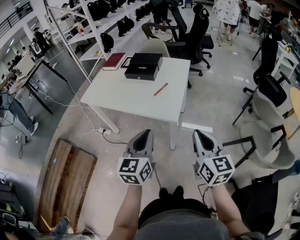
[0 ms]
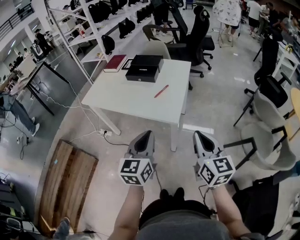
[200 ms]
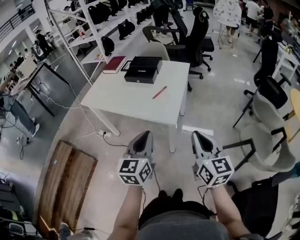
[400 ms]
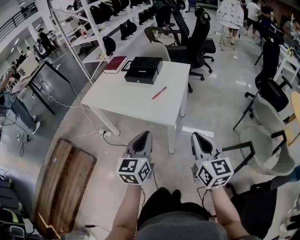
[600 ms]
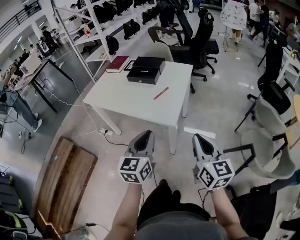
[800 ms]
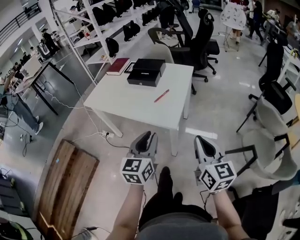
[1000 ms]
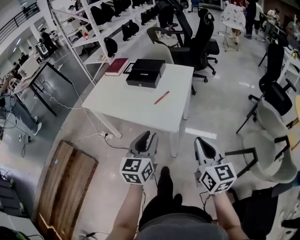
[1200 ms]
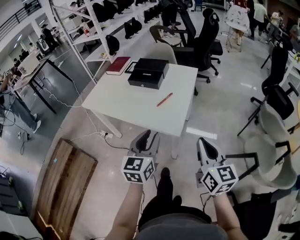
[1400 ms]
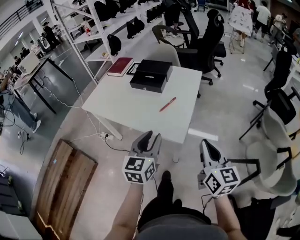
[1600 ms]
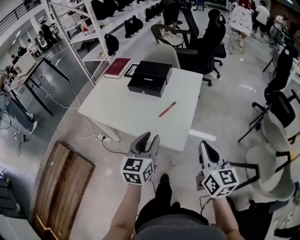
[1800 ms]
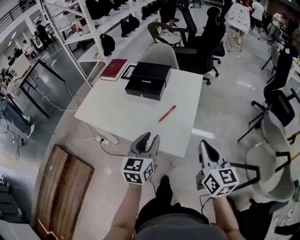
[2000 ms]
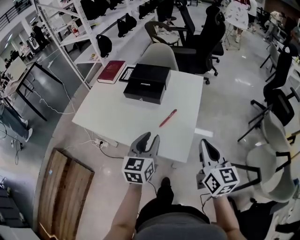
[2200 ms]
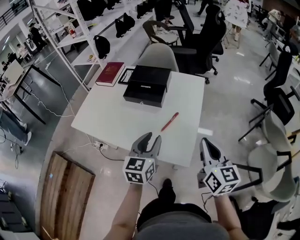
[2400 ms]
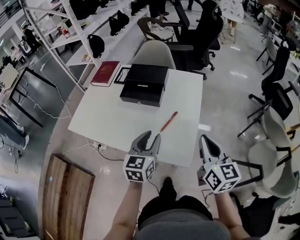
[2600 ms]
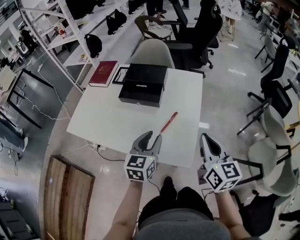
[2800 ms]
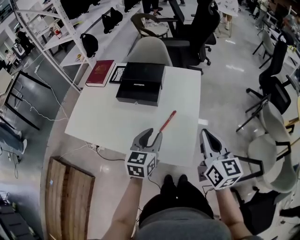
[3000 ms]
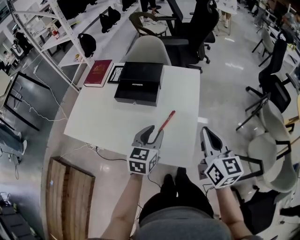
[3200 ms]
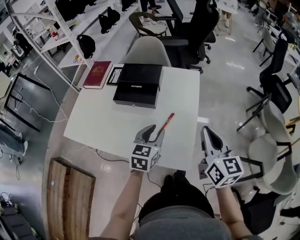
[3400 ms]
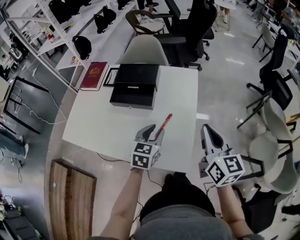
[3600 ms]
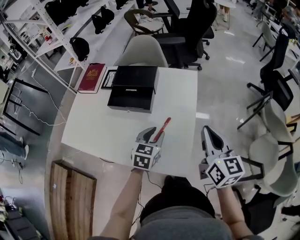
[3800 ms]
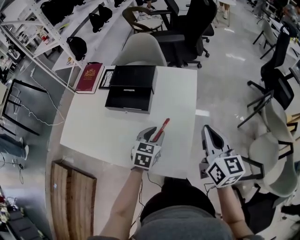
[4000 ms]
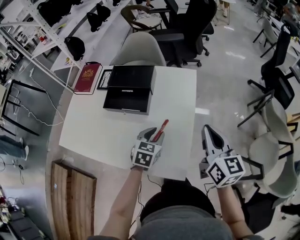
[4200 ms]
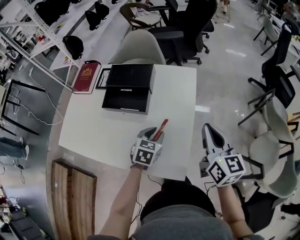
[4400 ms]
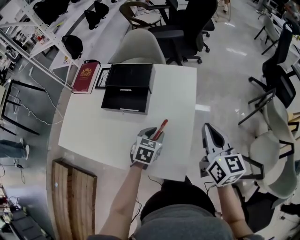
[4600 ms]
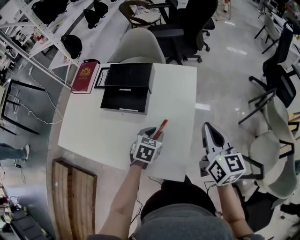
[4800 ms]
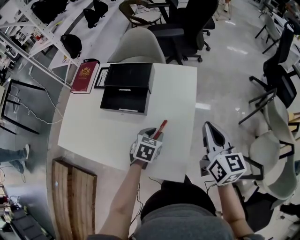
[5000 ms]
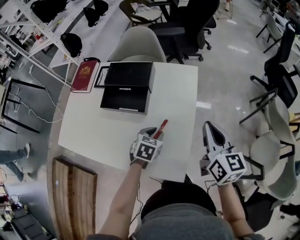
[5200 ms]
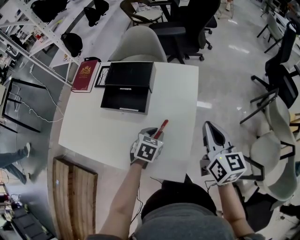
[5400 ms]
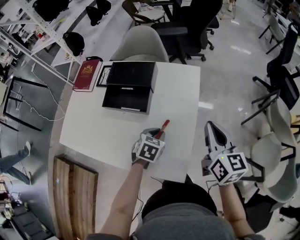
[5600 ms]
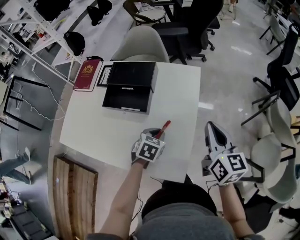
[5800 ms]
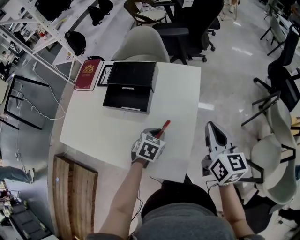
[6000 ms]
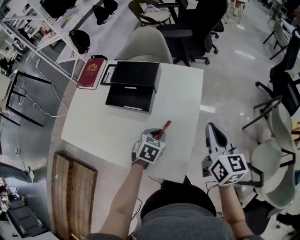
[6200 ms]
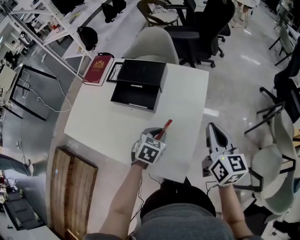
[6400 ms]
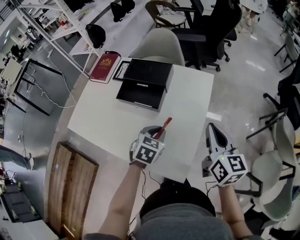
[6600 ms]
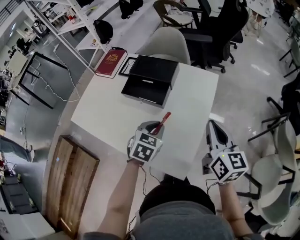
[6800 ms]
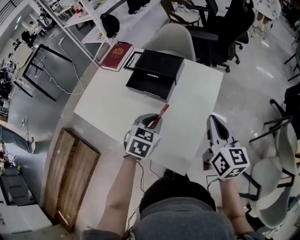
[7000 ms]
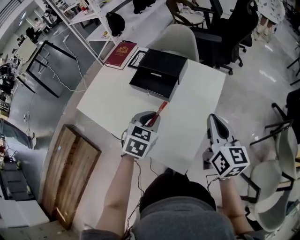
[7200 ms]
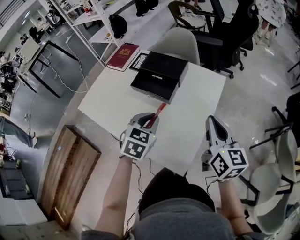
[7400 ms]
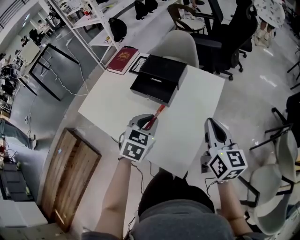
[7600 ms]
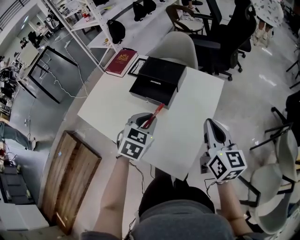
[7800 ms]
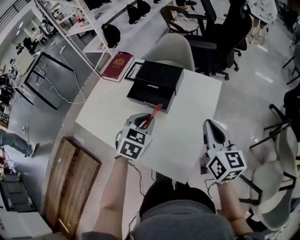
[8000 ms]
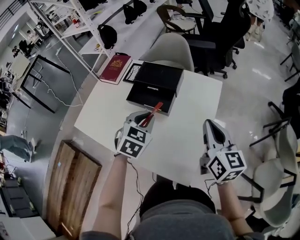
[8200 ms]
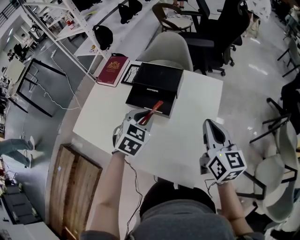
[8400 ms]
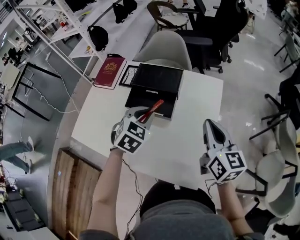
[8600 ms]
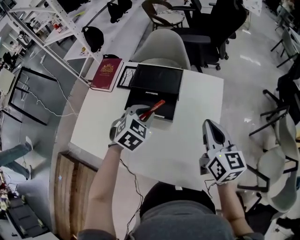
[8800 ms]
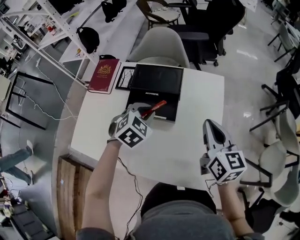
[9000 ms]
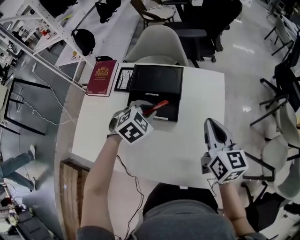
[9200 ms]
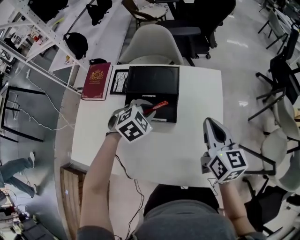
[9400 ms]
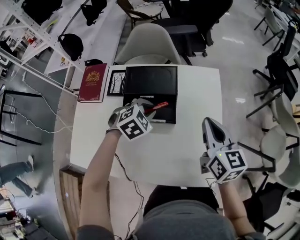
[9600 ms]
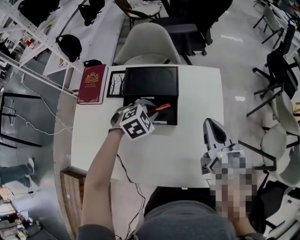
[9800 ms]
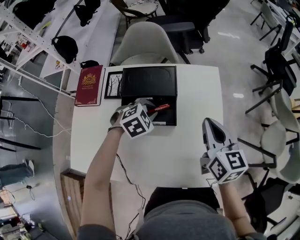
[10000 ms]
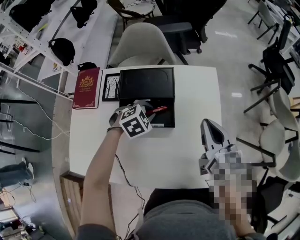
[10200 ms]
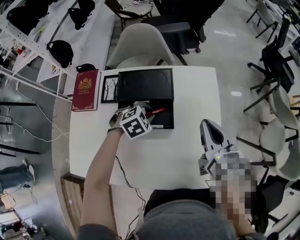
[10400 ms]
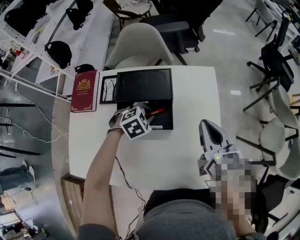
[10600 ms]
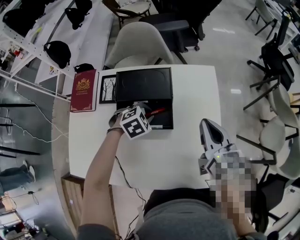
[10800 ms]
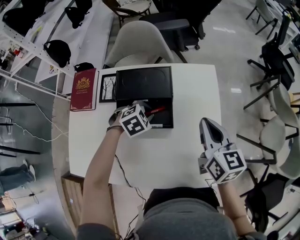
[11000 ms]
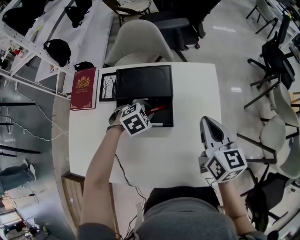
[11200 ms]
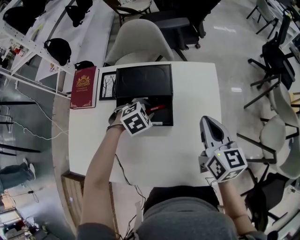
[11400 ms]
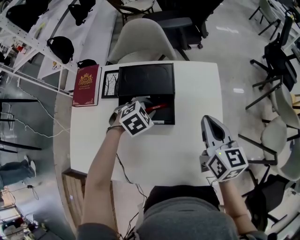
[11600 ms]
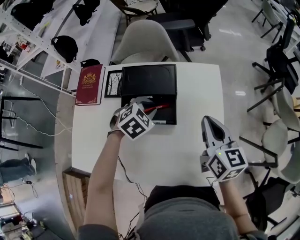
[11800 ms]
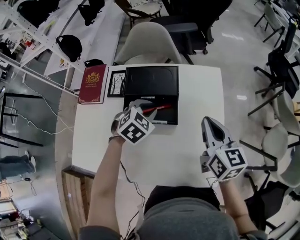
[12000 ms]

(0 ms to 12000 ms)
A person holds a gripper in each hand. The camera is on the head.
0 ms - 1600 ms: Both grippers move forward, some 10 cm. The left gripper opens.
1600 ms - 3000 ms: The grippers both shift forward by about 20 cm.
3000 ms - 4400 ms: The right gripper shifts some 10 cm forward. Meanwhile the left gripper goes about 15 cm downward and forward, and swivels roughly 30 degrees.
4400 ms - 6000 ms: The grippers move only a little.
6000 ms - 7600 ms: The right gripper moves to the left, roughly 5 cm, while the left gripper goes about 15 cm upward and to the left, and rotates roughly 20 degrees.
7600 ms - 9000 ms: The left gripper moves forward, approximately 15 cm, and rotates about 40 degrees. Meanwhile the right gripper shifts about 10 cm forward and to the left.
9000 ms - 10400 ms: The left gripper goes roughly 10 cm downward, and changes its angle by roughly 30 degrees.
10400 ms - 12000 ms: The left gripper travels upward by roughly 5 cm, and swivels some 20 degrees.

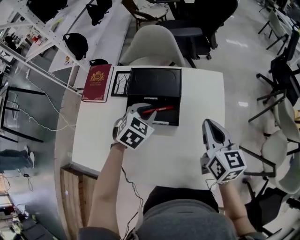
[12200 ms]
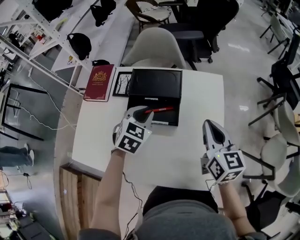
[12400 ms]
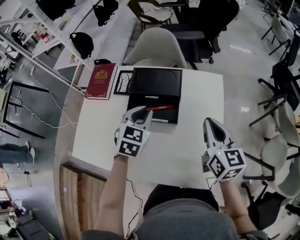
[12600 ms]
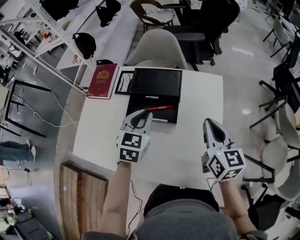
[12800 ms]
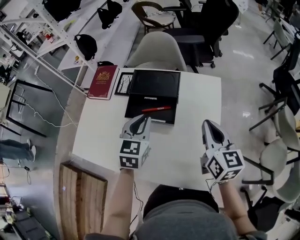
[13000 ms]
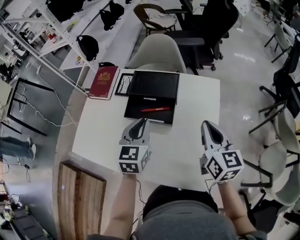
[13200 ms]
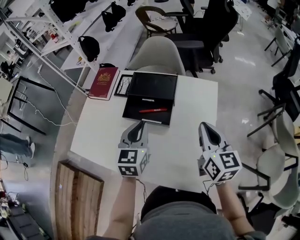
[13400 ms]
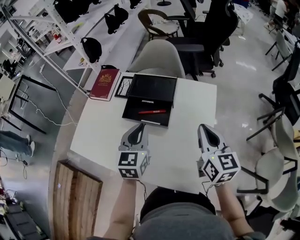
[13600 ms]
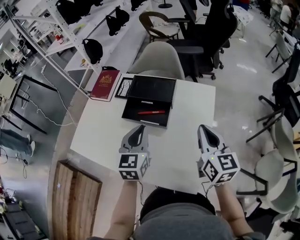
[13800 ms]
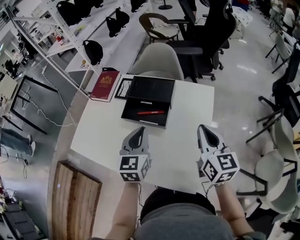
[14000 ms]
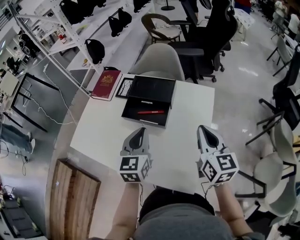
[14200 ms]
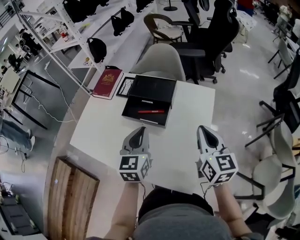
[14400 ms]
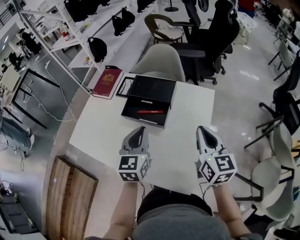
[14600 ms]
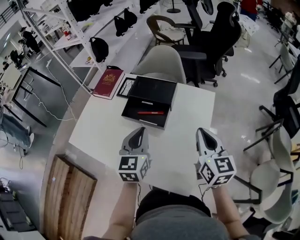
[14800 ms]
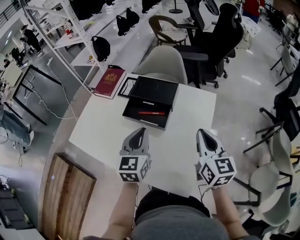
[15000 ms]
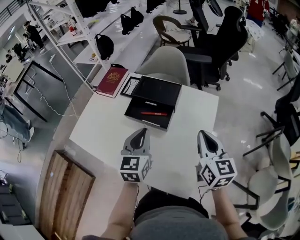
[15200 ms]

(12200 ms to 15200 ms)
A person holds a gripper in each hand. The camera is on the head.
12200 ms - 13800 ms: The right gripper shifts by approximately 5 cm, while the left gripper shifts about 15 cm backward and upward, and turns by roughly 50 degrees.
13800 ms - 15200 ms: The grippers make only small movements.

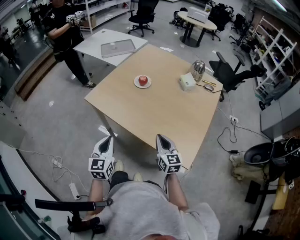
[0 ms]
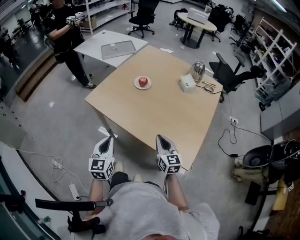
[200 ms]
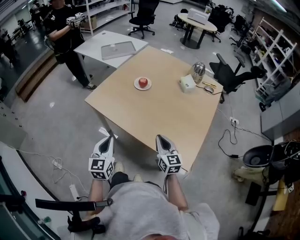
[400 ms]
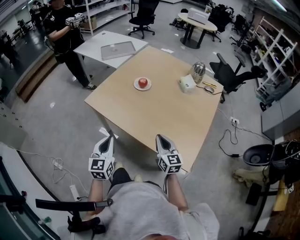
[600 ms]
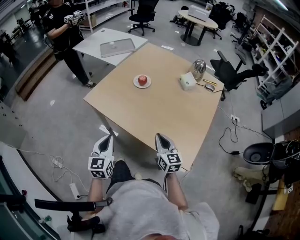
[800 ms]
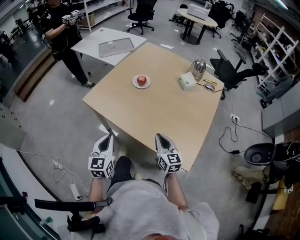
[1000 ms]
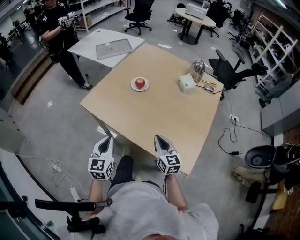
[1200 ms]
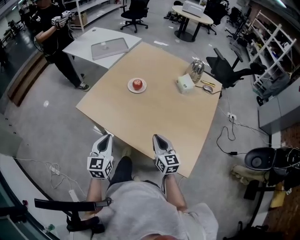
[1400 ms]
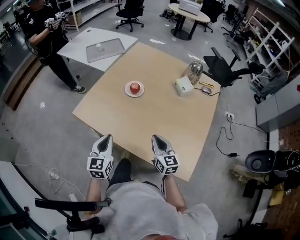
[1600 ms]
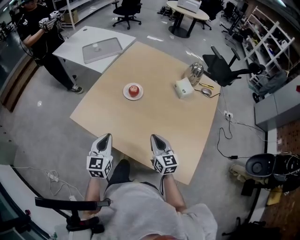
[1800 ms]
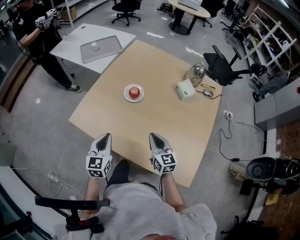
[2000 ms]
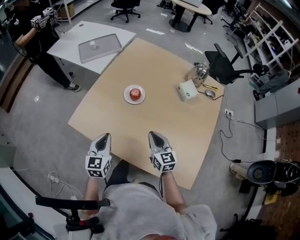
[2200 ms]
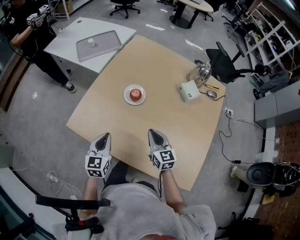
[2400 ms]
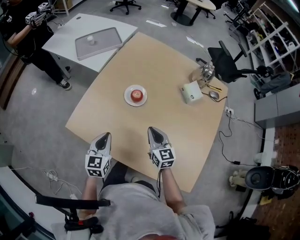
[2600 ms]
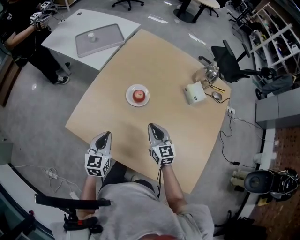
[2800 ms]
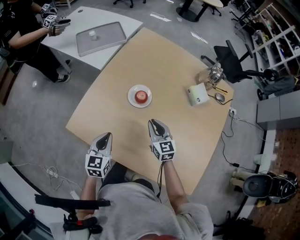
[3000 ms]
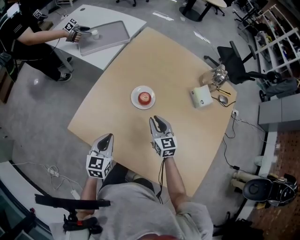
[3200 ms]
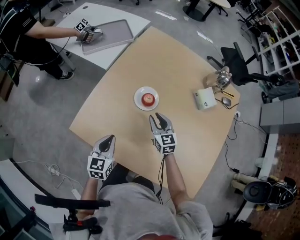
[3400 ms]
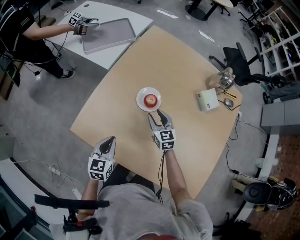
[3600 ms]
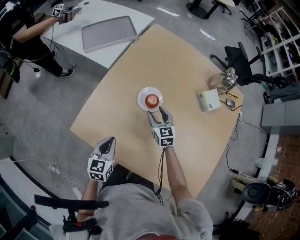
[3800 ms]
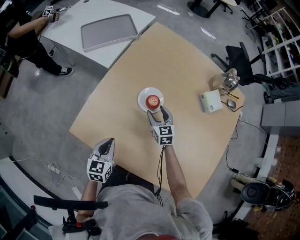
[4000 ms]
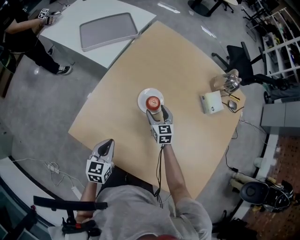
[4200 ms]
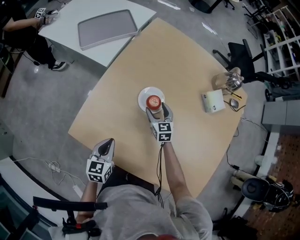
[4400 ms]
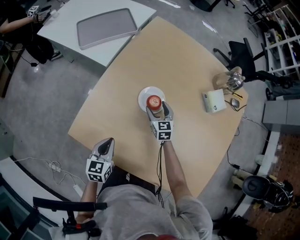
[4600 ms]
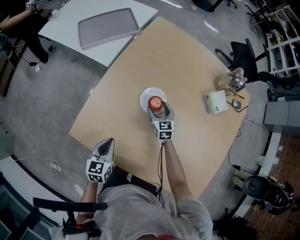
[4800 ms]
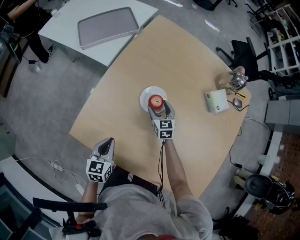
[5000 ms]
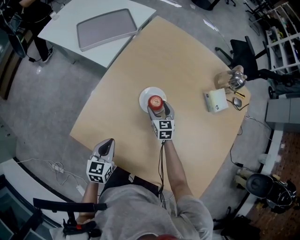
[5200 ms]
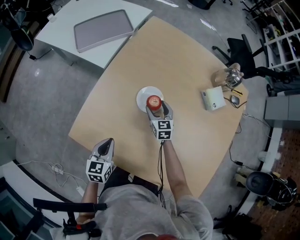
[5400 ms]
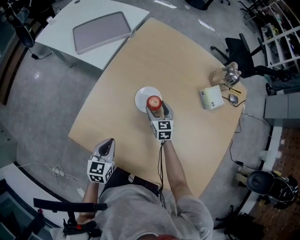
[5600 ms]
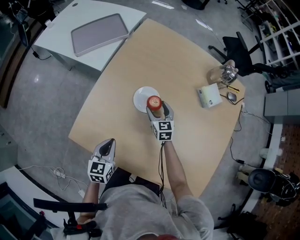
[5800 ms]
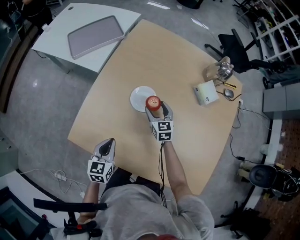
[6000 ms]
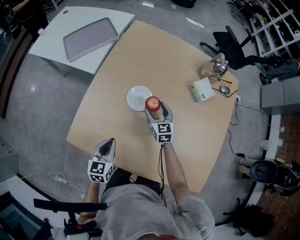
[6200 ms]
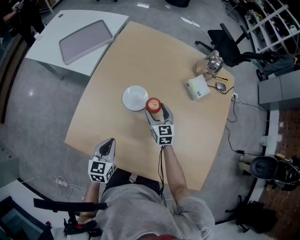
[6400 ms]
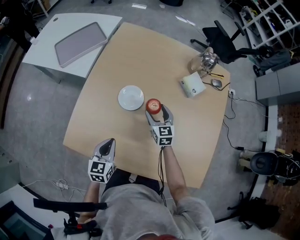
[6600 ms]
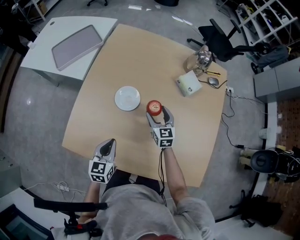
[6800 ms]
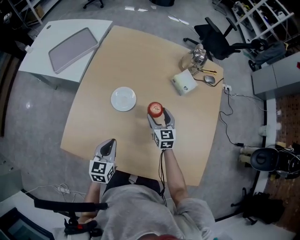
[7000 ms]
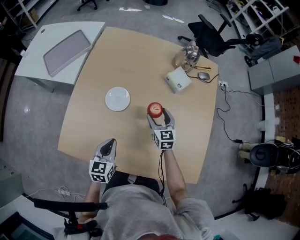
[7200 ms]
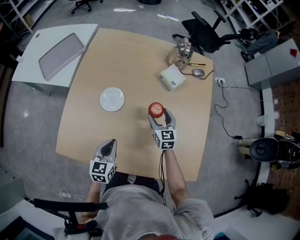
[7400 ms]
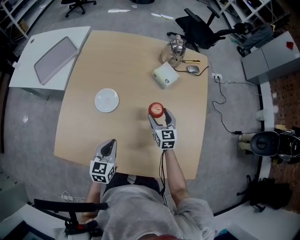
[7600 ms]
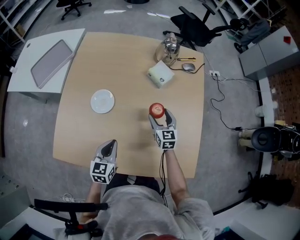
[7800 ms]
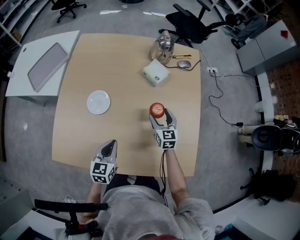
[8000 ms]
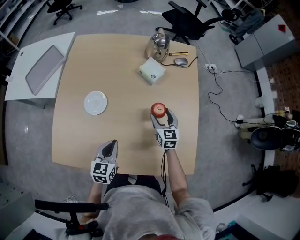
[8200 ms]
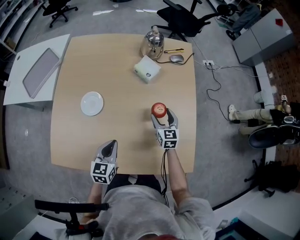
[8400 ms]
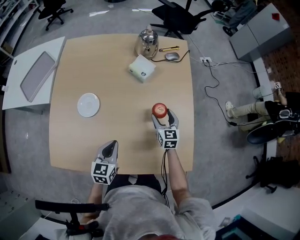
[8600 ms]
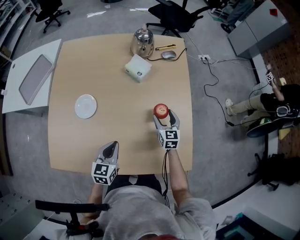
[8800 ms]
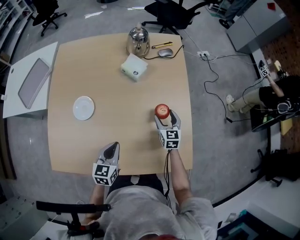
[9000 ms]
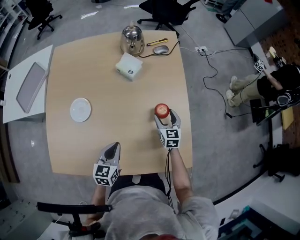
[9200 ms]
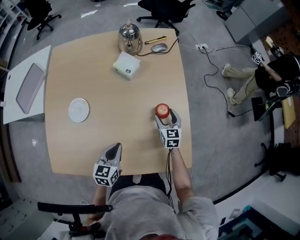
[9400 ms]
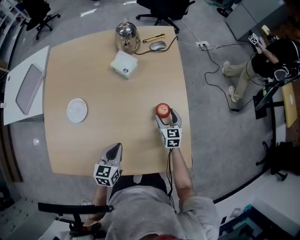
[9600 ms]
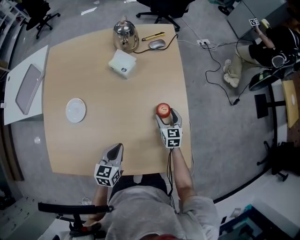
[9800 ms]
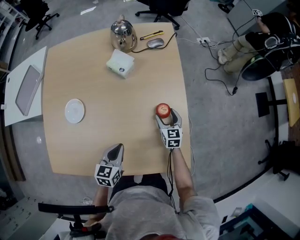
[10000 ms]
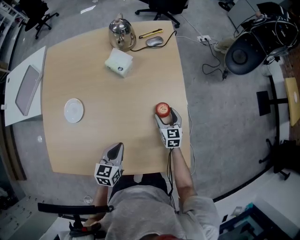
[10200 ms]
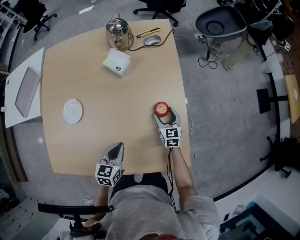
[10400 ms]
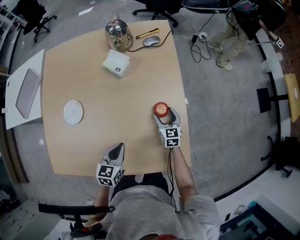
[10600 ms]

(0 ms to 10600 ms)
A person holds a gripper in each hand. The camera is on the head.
0 ms - 1600 ms: Both grippers travel together forward, approximately 15 cm.
1600 ms - 3000 ms: Both grippers travel together forward, about 20 cm.
3000 ms - 4600 ms: The right gripper goes some 15 cm forward and downward, and opens its fingers, while the left gripper moves downward, about 5 cm.
4600 ms - 6000 ms: There are only small adjustments of the grippers.
6000 ms - 7600 ms: The grippers both shift to the right by roughly 20 cm.
7600 ms - 9000 ms: The grippers both shift to the right by about 15 cm.
9000 ms - 10600 ms: The left gripper moves to the right, roughly 10 cm, while the right gripper is displaced downward and to the right by roughly 10 cm.
